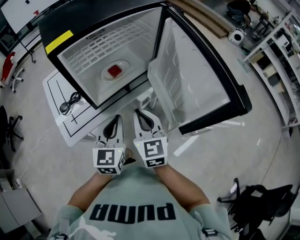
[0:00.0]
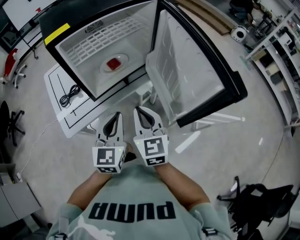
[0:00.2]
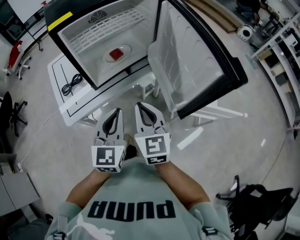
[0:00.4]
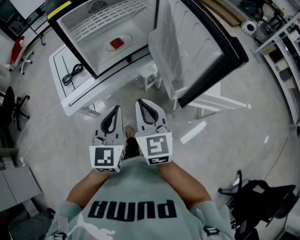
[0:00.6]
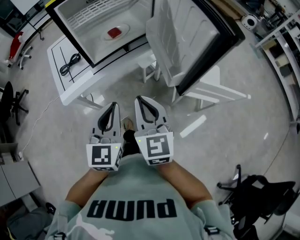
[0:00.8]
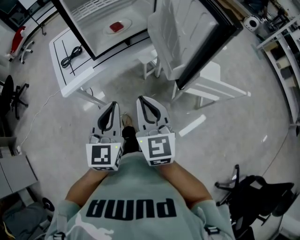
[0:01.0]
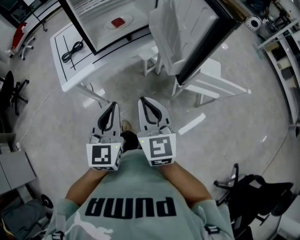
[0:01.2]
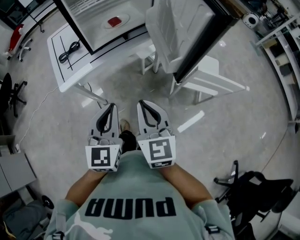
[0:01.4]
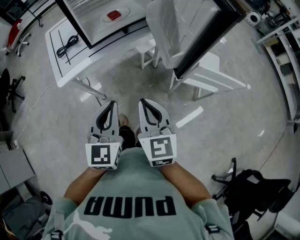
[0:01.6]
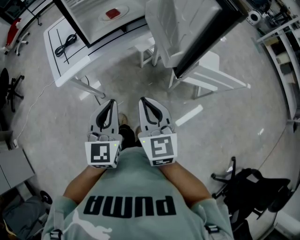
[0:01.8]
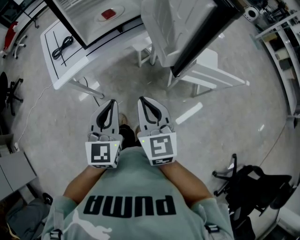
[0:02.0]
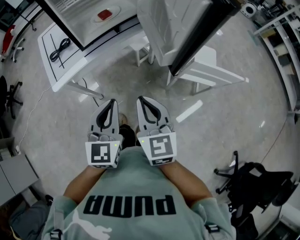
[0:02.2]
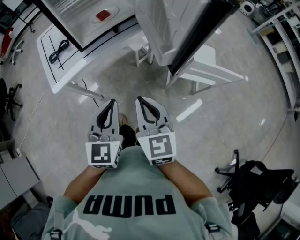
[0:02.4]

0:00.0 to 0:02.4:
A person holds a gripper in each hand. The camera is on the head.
0:00.0 to 0:01.2: Both grippers move backward, approximately 20 cm.
0:01.2 to 0:02.4: The grippers stay close to where they were, moving slightly.

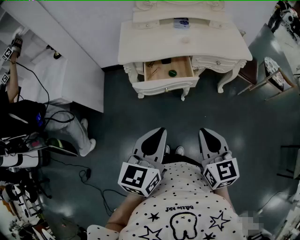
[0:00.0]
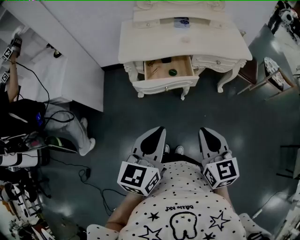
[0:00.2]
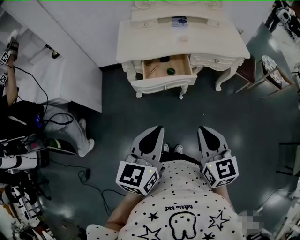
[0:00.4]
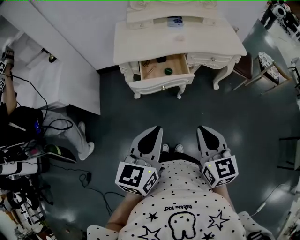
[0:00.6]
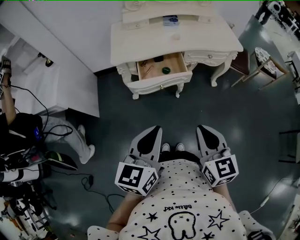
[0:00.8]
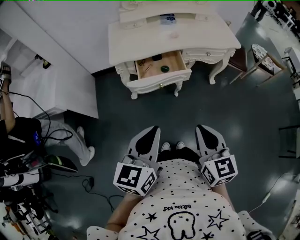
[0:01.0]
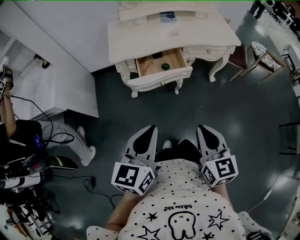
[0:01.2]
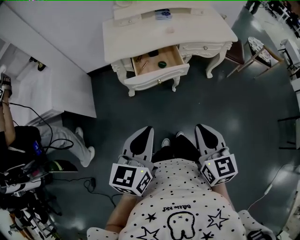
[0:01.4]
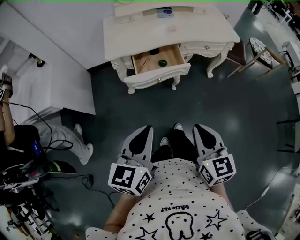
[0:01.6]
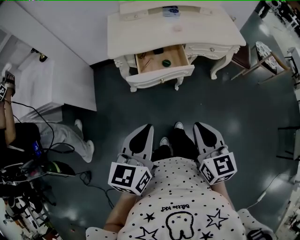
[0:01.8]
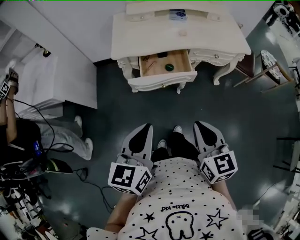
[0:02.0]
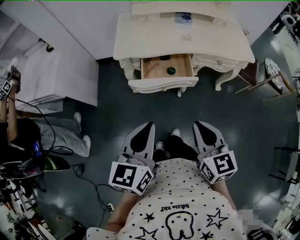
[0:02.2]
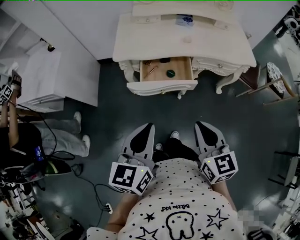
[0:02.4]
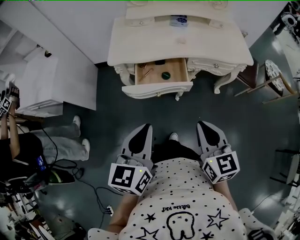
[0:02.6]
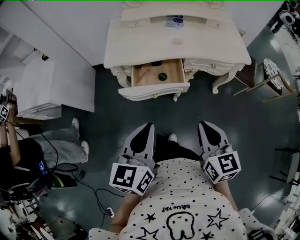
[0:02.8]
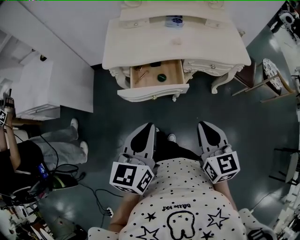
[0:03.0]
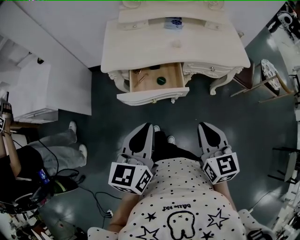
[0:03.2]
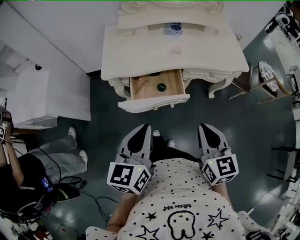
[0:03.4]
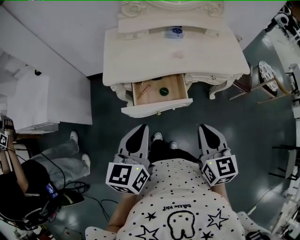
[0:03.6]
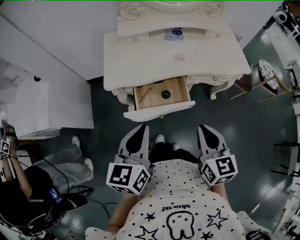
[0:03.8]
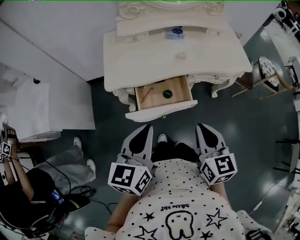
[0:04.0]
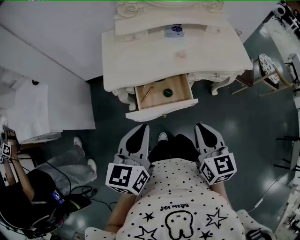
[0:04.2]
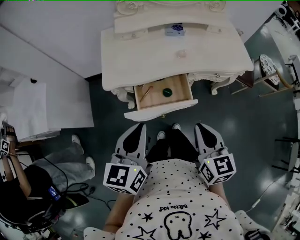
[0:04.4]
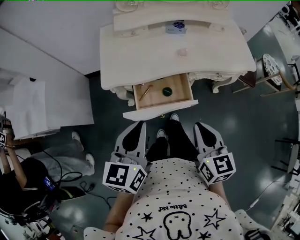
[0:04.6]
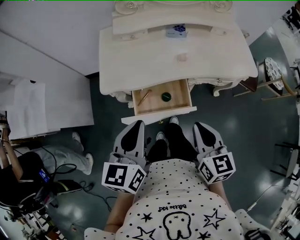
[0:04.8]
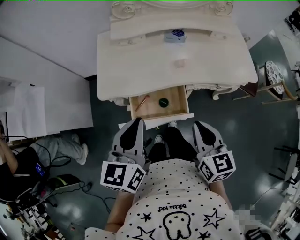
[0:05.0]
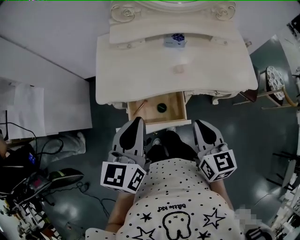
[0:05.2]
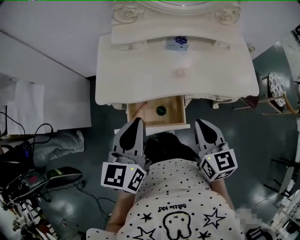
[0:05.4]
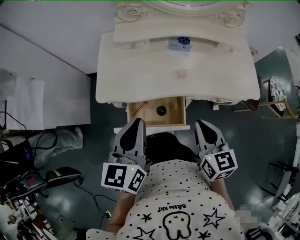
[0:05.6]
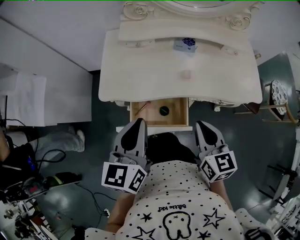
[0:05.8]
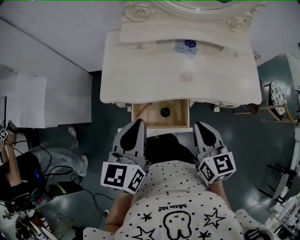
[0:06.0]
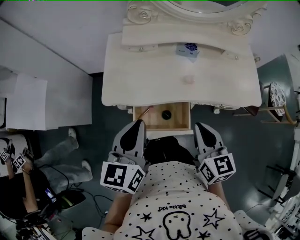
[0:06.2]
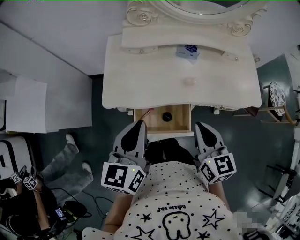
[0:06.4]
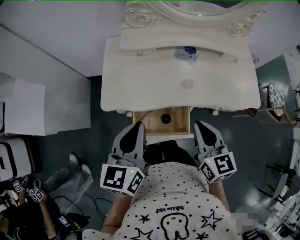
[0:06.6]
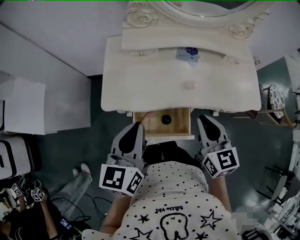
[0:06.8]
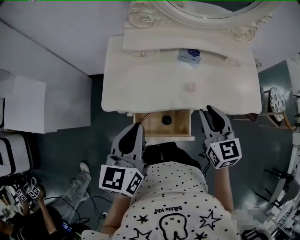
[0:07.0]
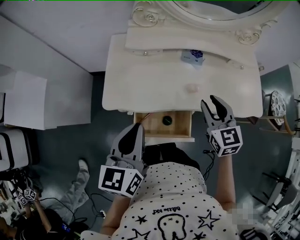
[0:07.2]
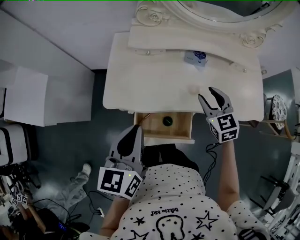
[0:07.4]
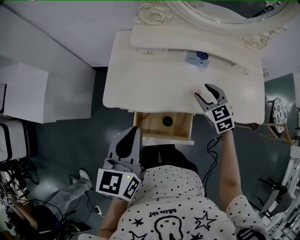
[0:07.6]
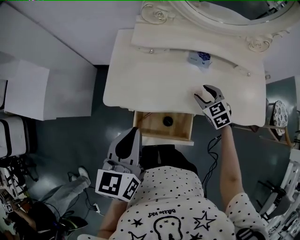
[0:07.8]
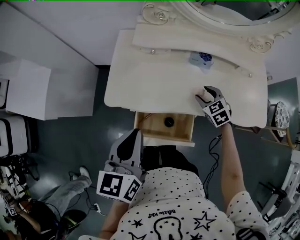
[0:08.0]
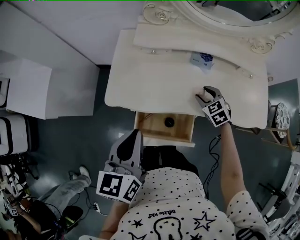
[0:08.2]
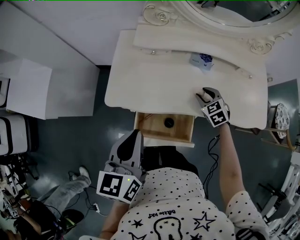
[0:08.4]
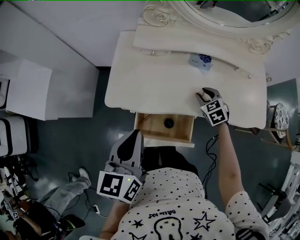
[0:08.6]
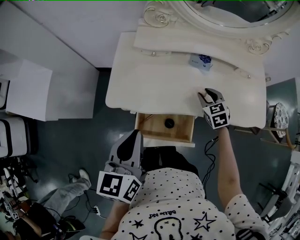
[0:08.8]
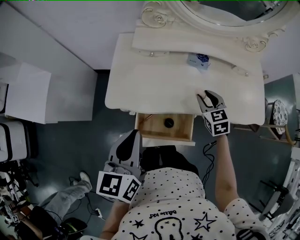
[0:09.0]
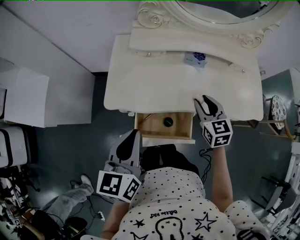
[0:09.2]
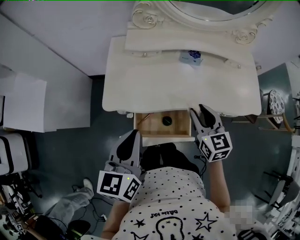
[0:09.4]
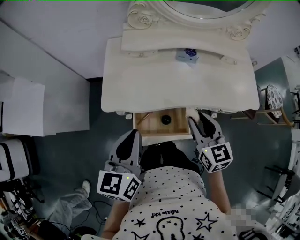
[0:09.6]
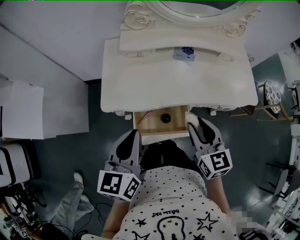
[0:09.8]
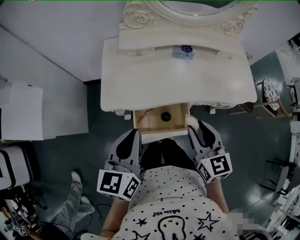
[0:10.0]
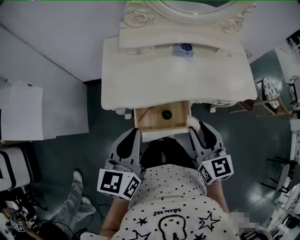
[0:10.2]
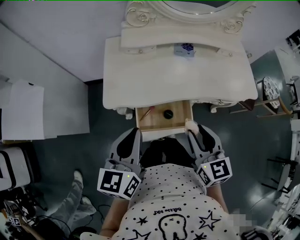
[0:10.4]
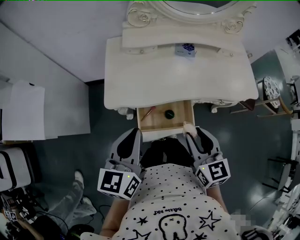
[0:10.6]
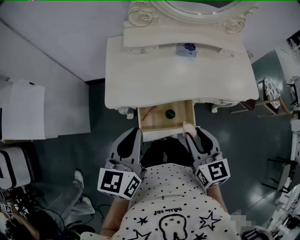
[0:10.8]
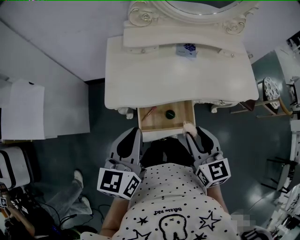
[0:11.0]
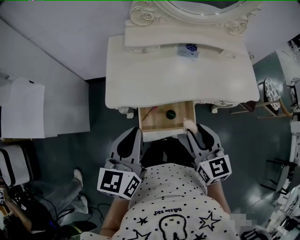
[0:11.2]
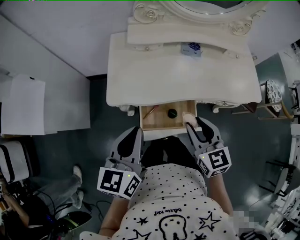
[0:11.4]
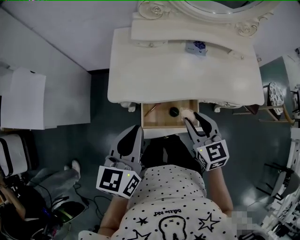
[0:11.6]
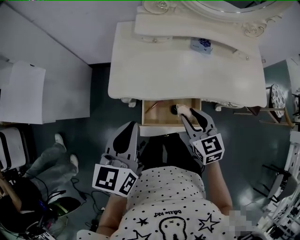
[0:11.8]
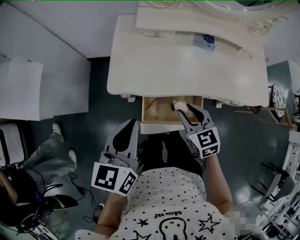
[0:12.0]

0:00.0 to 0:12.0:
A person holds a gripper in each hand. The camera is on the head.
0:00.0 to 0:01.6: The left gripper shifts approximately 5 cm to the left. The right gripper shifts by approximately 5 cm.
0:01.6 to 0:03.0: The two grippers go roughly 15 cm forward and to the right.
0:03.0 to 0:04.4: Both grippers travel together forward and to the left, roughly 15 cm.
0:04.4 to 0:06.0: Both grippers travel together forward, approximately 15 cm.
0:06.0 to 0:07.6: The right gripper heads forward and downward, covering roughly 25 cm, changes its angle by some 40 degrees, and opens.
0:07.6 to 0:09.0: The right gripper travels downward and back again, approximately 10 cm each way.
0:09.0 to 0:10.4: The right gripper moves backward and upward, approximately 25 cm, and swivels roughly 20 degrees.
0:10.4 to 0:12.0: The left gripper shifts by approximately 5 cm; the right gripper is displaced downward, forward and to the left by some 15 cm, and changes its angle by some 20 degrees.

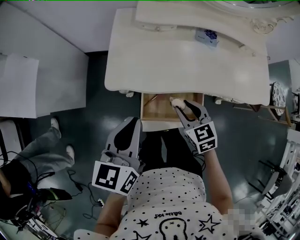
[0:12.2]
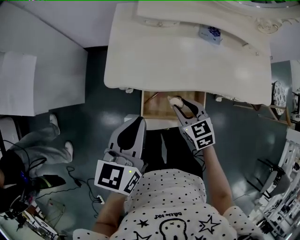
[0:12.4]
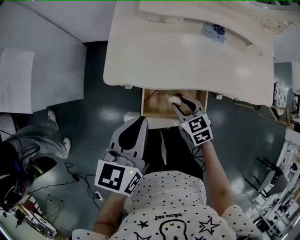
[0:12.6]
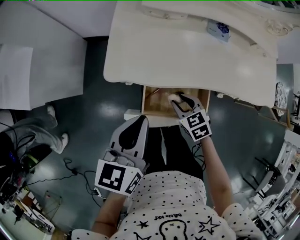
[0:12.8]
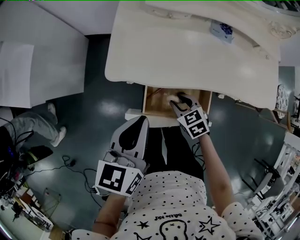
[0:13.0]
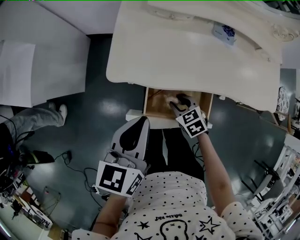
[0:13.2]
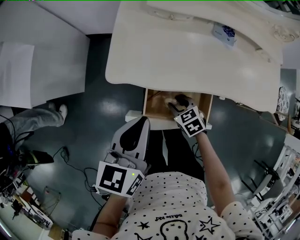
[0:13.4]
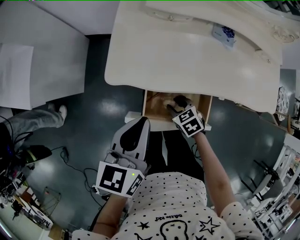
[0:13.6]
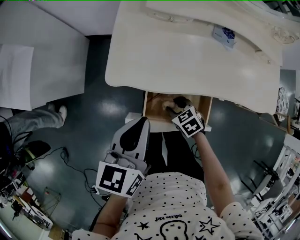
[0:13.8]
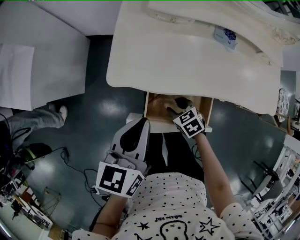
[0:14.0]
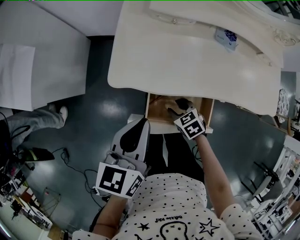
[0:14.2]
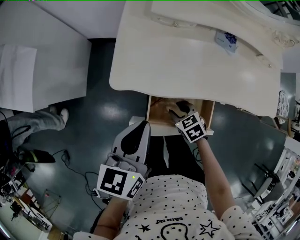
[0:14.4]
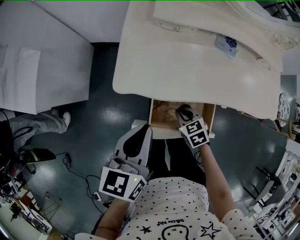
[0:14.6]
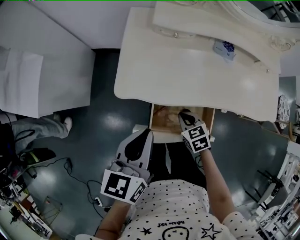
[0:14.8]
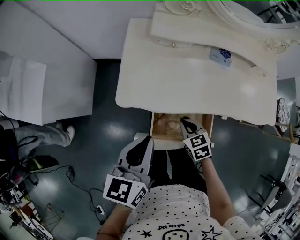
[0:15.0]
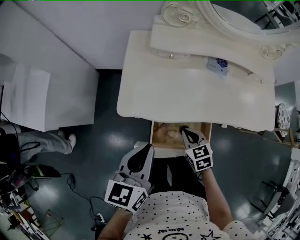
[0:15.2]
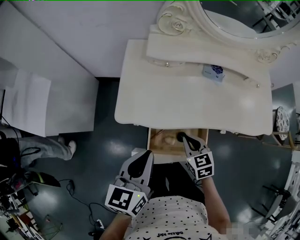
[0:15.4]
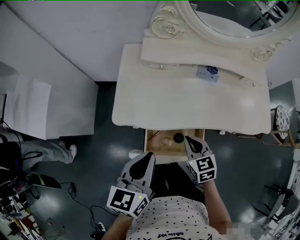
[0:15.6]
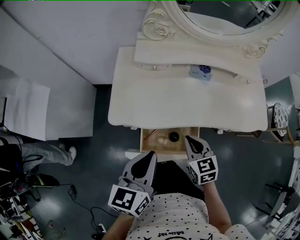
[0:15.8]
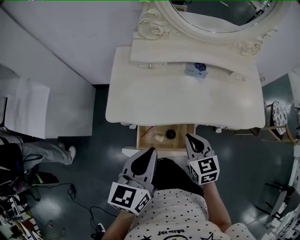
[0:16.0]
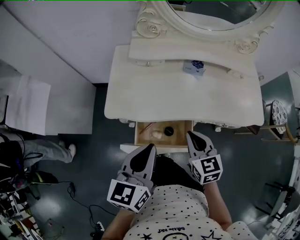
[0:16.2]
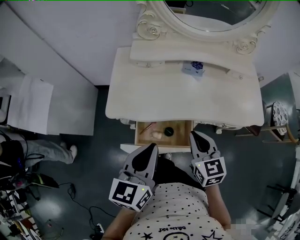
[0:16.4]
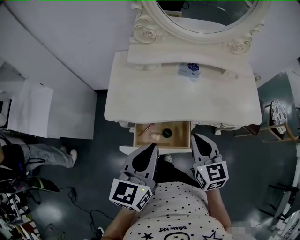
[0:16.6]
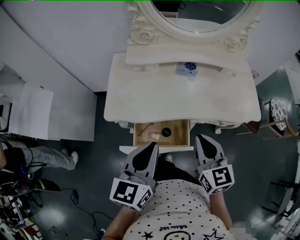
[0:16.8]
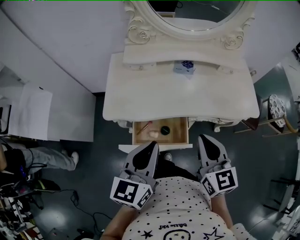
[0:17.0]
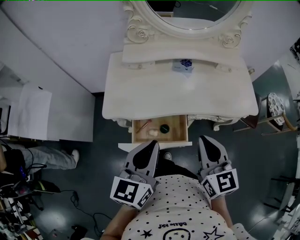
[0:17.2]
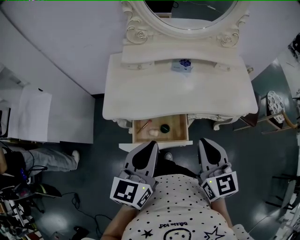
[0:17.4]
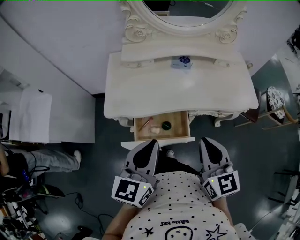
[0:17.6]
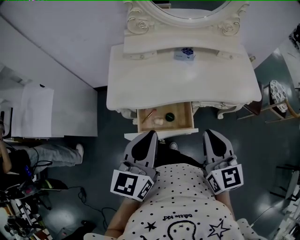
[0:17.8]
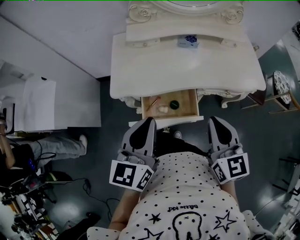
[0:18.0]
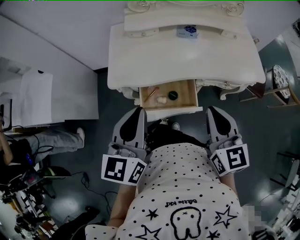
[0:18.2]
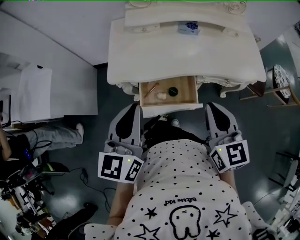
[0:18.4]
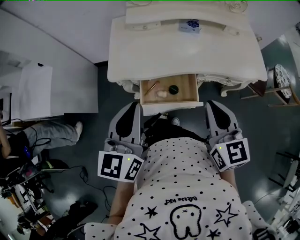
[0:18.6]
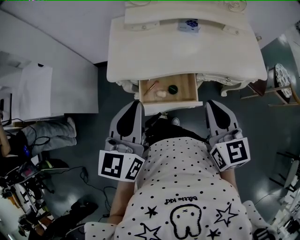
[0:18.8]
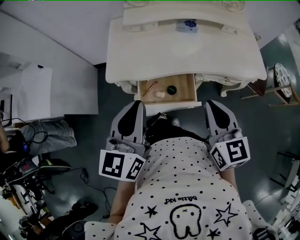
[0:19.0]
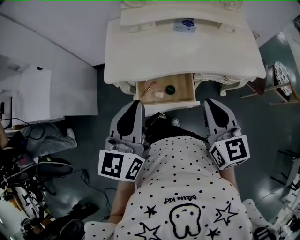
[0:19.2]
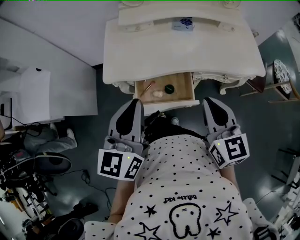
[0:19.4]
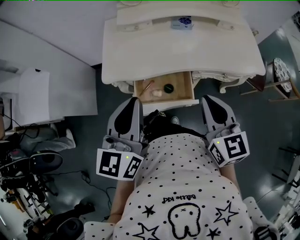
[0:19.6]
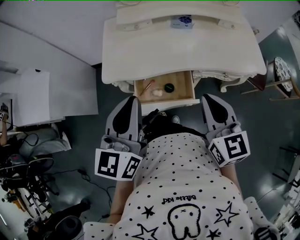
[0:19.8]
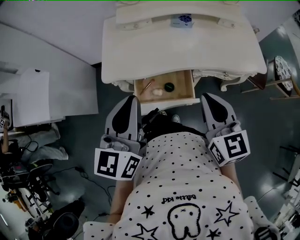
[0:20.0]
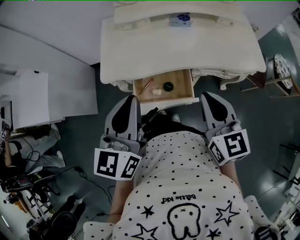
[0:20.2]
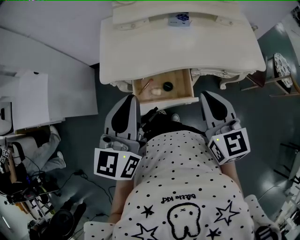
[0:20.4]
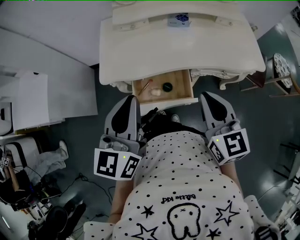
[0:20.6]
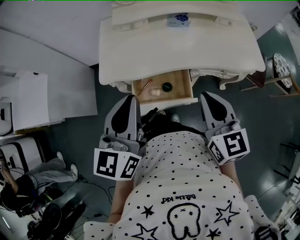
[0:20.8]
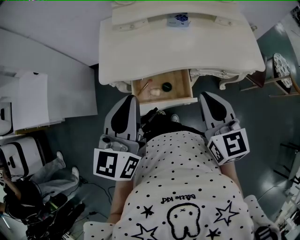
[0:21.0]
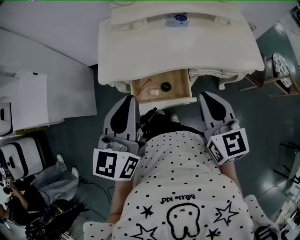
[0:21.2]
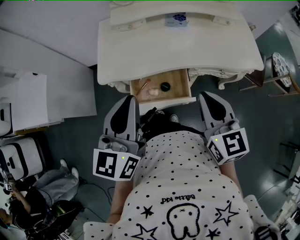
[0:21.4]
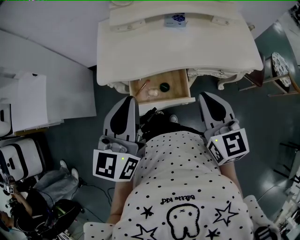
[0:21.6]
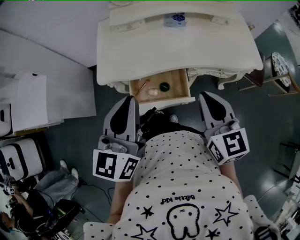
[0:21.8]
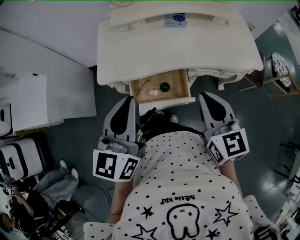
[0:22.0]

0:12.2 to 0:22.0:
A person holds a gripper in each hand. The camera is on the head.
0:12.2 to 0:13.6: The right gripper travels downward by roughly 15 cm, and rotates some 30 degrees.
0:13.6 to 0:15.0: The right gripper shifts some 5 cm upward, and closes.
0:15.0 to 0:16.4: The left gripper moves to the right and upward, approximately 15 cm; the right gripper travels upward and to the right by some 20 cm, and turns by some 30 degrees.
0:16.4 to 0:17.8: The left gripper ends up approximately 5 cm from where it was. Meanwhile the right gripper travels upward and backward by some 15 cm.
0:17.8 to 0:19.2: The grippers move only a little.
0:19.2 to 0:22.0: Neither gripper changes place.
